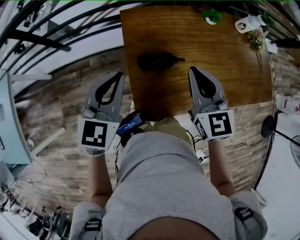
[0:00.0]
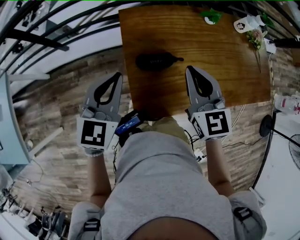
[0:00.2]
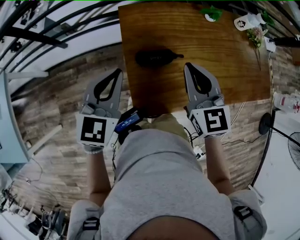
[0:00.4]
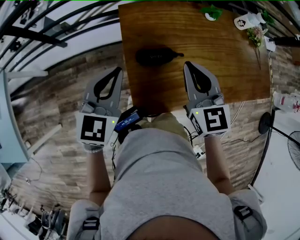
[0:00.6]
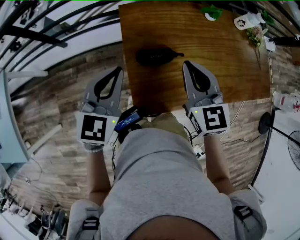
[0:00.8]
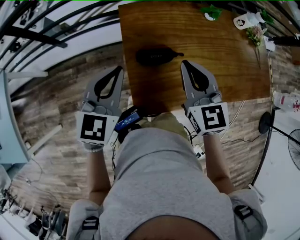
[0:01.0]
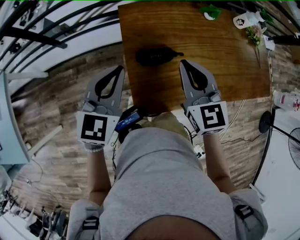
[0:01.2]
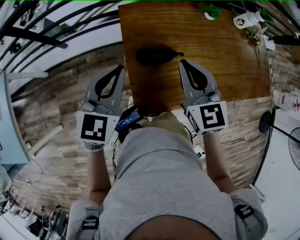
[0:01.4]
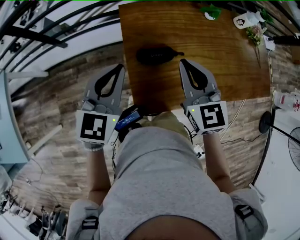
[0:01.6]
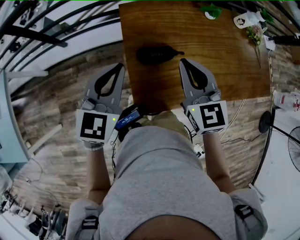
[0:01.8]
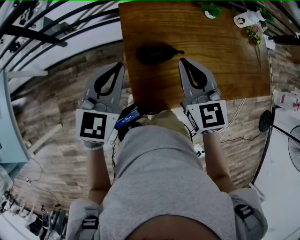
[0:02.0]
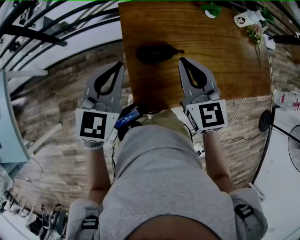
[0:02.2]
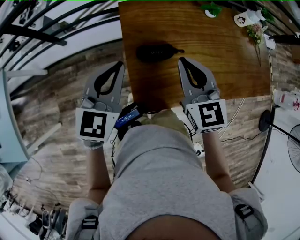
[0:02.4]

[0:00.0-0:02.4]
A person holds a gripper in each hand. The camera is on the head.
0:00.0 to 0:01.2: There are only small adjustments of the grippers.
0:01.2 to 0:02.4: Both grippers stay about where they are.

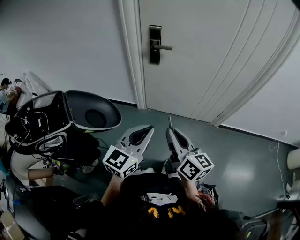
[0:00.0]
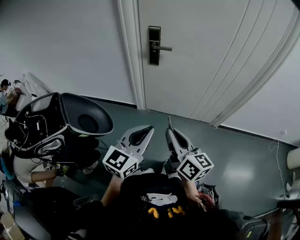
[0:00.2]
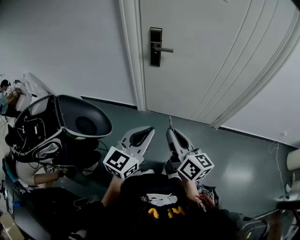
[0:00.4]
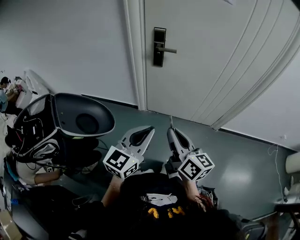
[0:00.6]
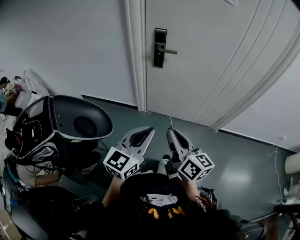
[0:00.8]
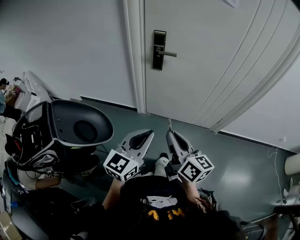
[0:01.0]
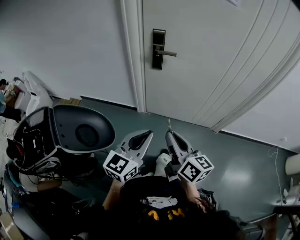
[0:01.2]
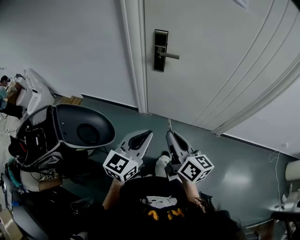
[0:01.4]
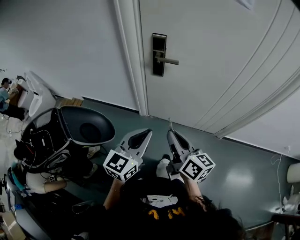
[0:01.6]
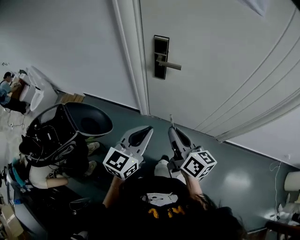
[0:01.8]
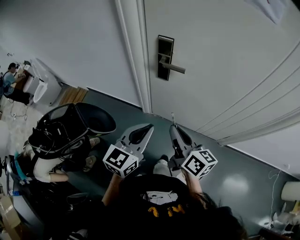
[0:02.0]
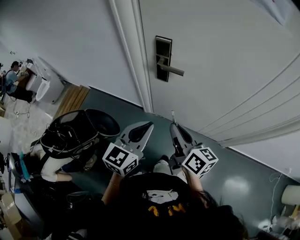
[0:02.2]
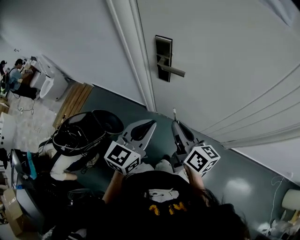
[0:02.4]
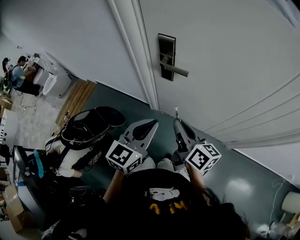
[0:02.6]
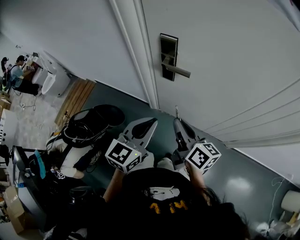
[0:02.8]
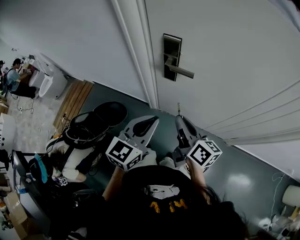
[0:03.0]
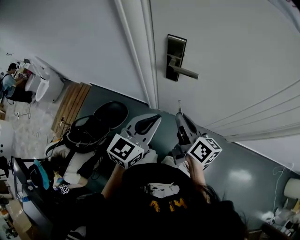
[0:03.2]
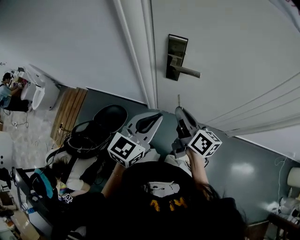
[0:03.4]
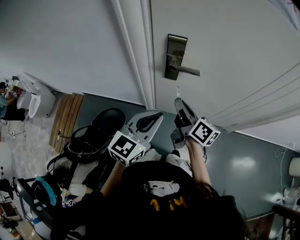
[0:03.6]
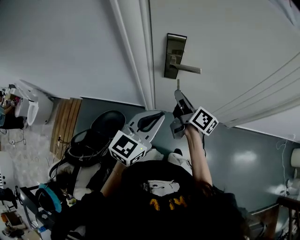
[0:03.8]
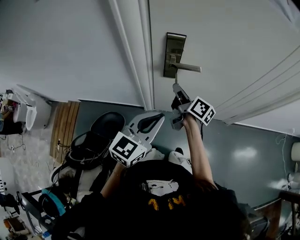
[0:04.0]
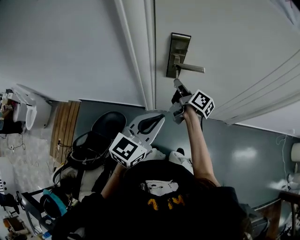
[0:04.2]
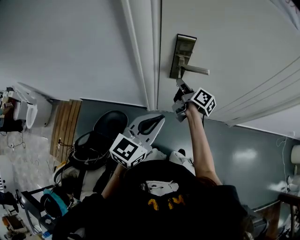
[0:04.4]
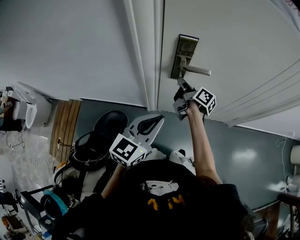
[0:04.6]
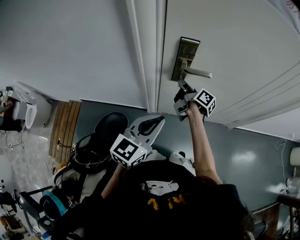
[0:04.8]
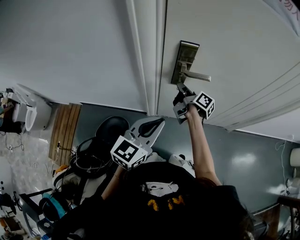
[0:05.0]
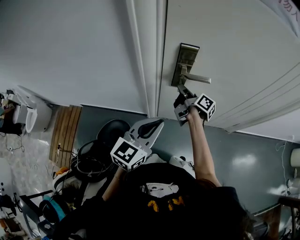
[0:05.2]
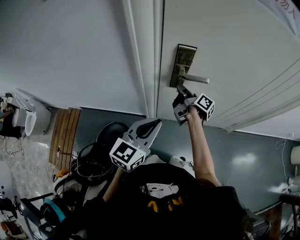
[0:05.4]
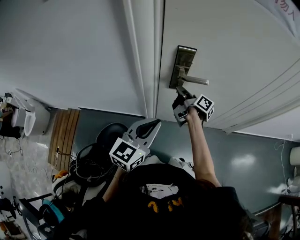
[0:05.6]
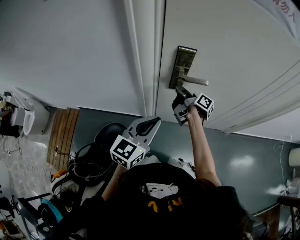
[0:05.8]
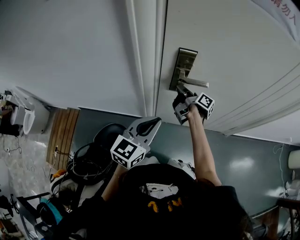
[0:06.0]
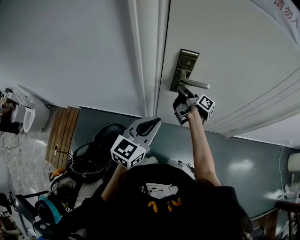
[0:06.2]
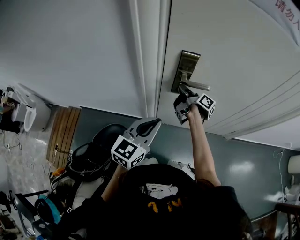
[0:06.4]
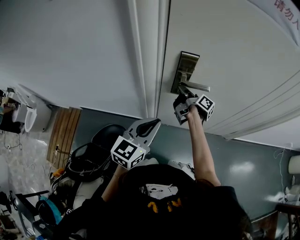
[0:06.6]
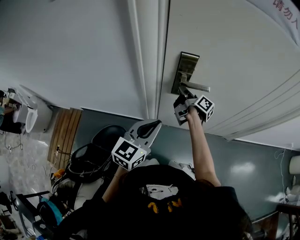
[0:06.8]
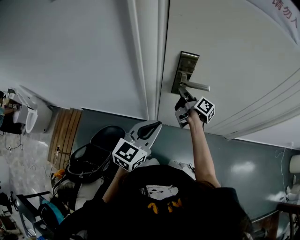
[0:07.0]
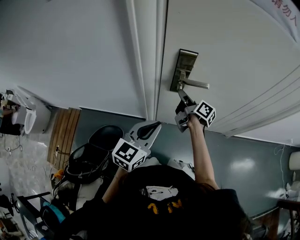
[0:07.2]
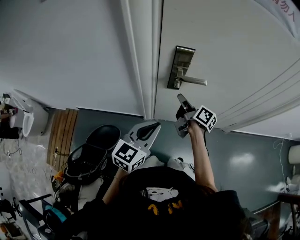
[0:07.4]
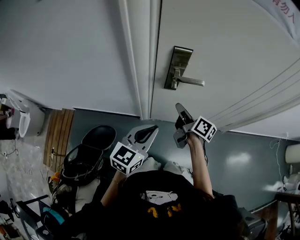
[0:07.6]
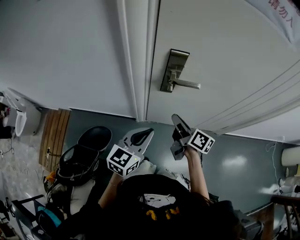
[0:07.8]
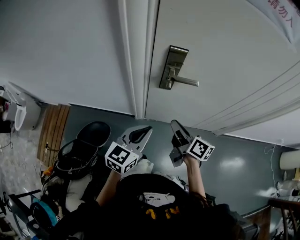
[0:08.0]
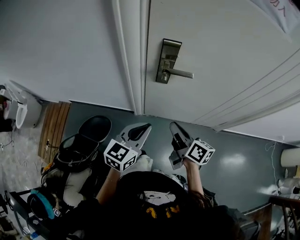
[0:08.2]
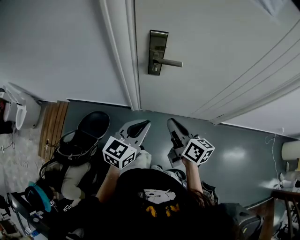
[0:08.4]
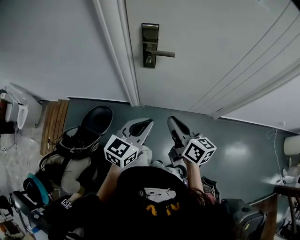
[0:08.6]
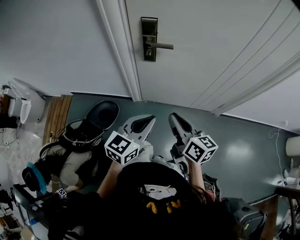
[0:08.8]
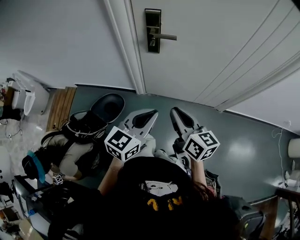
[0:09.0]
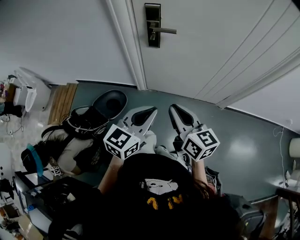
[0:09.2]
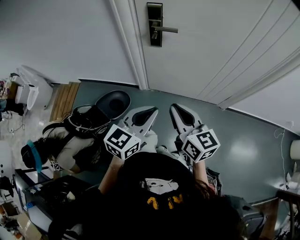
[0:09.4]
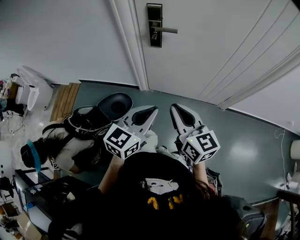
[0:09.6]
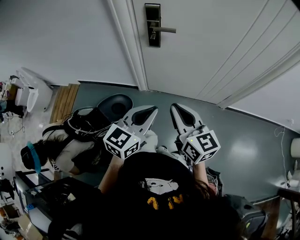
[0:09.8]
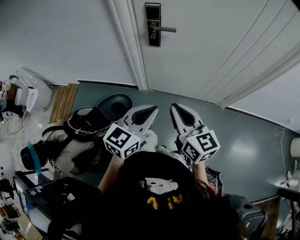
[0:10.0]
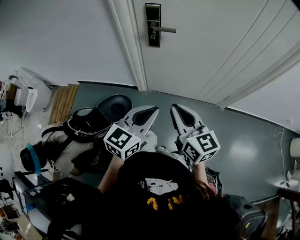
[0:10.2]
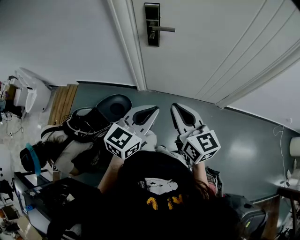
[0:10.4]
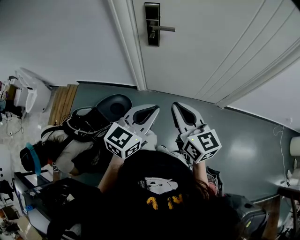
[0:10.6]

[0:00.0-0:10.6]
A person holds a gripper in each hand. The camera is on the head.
0:00.0 to 0:01.6: Both grippers move forward, approximately 15 cm.
0:01.6 to 0:03.0: The grippers both shift forward by about 20 cm.
0:03.0 to 0:04.6: The right gripper goes approximately 20 cm forward, to the left and downward, and rotates roughly 30 degrees, while the left gripper travels to the left by approximately 10 cm.
0:04.6 to 0:06.0: The left gripper ends up some 5 cm from where it was.
0:06.0 to 0:07.6: The right gripper is displaced backward by roughly 10 cm, and rotates approximately 20 degrees.
0:07.6 to 0:09.0: The right gripper is displaced backward by approximately 25 cm, and rotates roughly 30 degrees, while the left gripper shifts some 20 cm backward and to the right.
0:09.0 to 0:10.6: The right gripper changes place by about 5 cm.

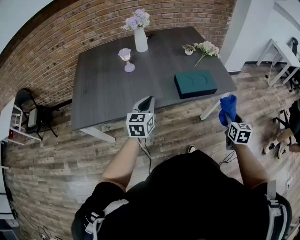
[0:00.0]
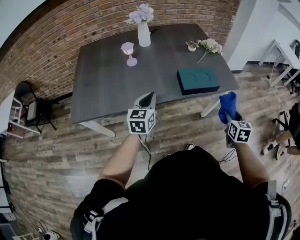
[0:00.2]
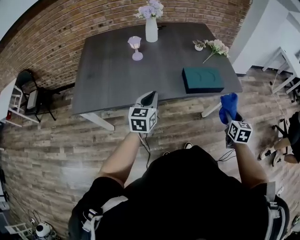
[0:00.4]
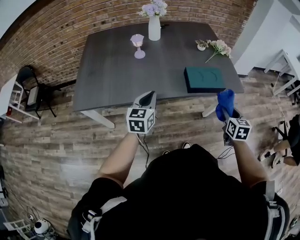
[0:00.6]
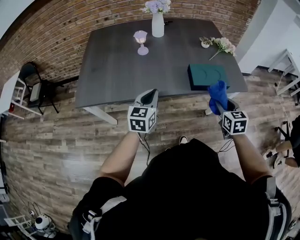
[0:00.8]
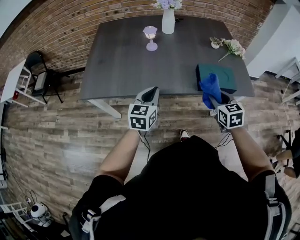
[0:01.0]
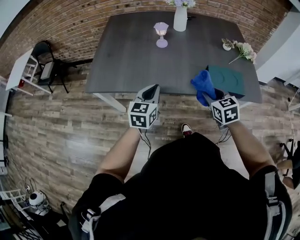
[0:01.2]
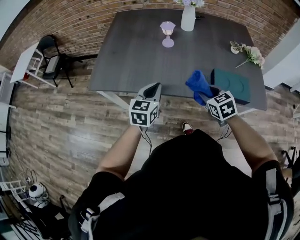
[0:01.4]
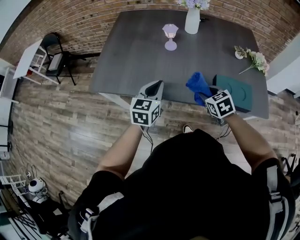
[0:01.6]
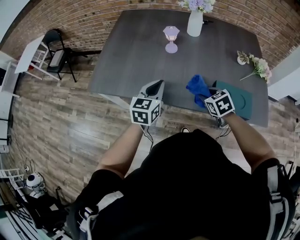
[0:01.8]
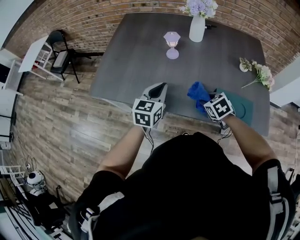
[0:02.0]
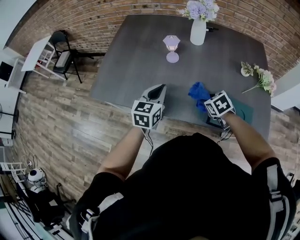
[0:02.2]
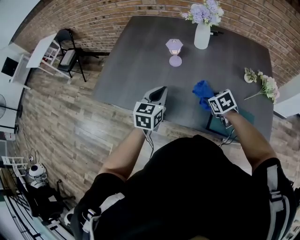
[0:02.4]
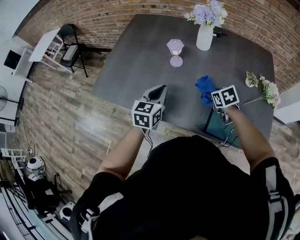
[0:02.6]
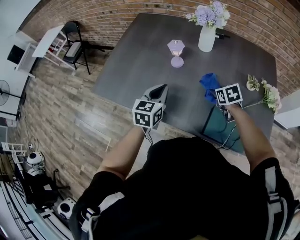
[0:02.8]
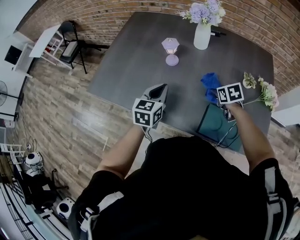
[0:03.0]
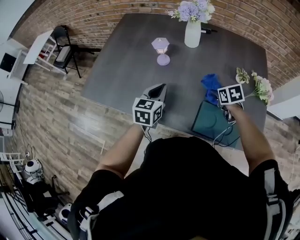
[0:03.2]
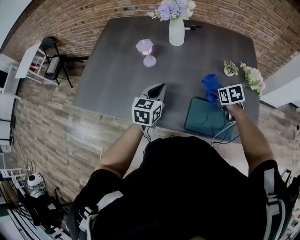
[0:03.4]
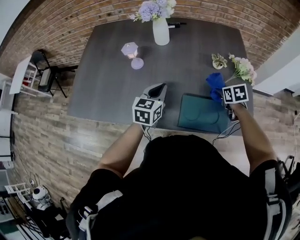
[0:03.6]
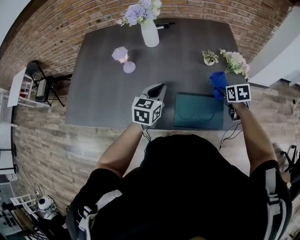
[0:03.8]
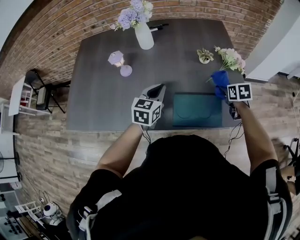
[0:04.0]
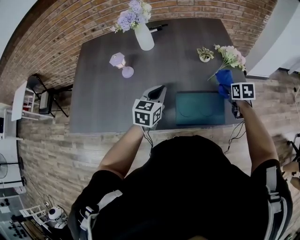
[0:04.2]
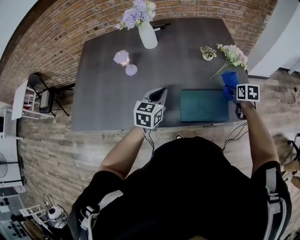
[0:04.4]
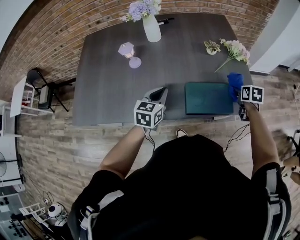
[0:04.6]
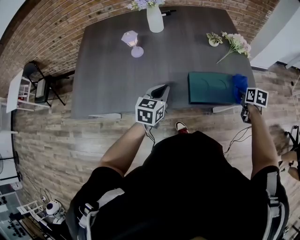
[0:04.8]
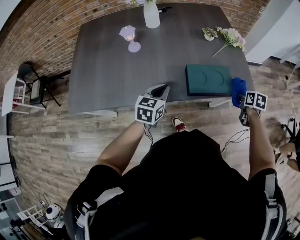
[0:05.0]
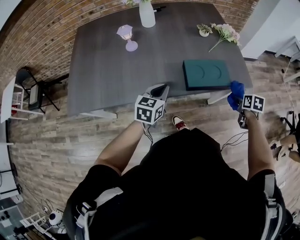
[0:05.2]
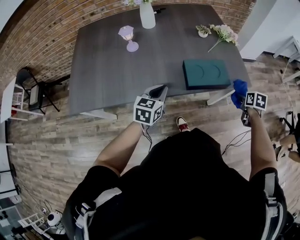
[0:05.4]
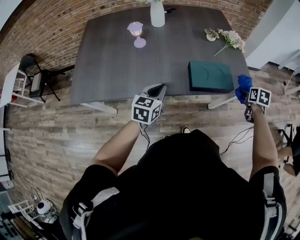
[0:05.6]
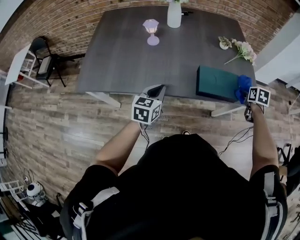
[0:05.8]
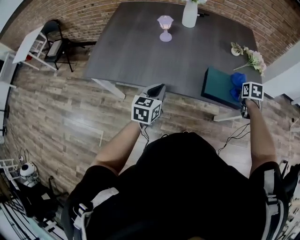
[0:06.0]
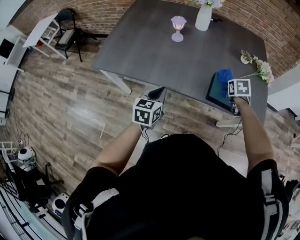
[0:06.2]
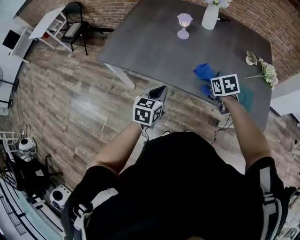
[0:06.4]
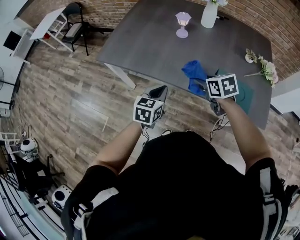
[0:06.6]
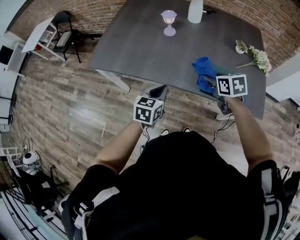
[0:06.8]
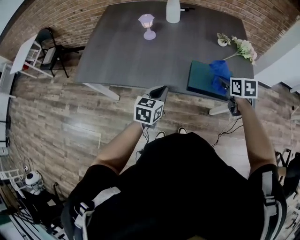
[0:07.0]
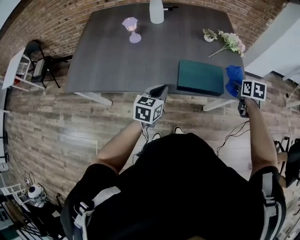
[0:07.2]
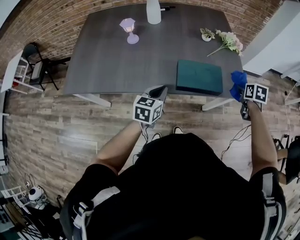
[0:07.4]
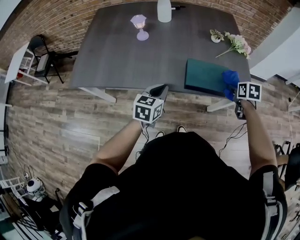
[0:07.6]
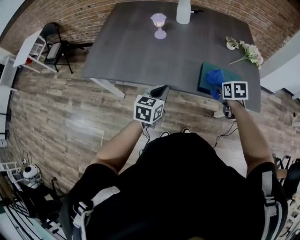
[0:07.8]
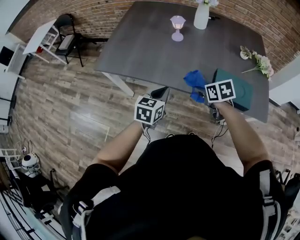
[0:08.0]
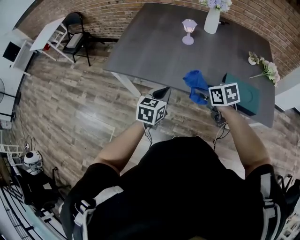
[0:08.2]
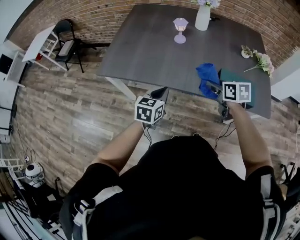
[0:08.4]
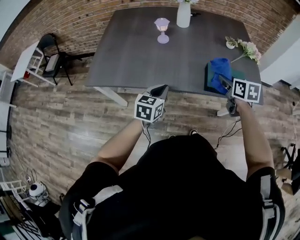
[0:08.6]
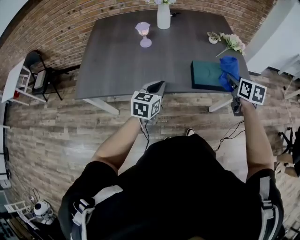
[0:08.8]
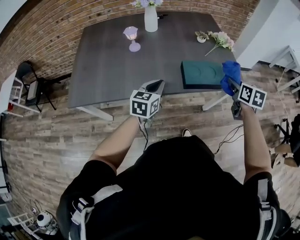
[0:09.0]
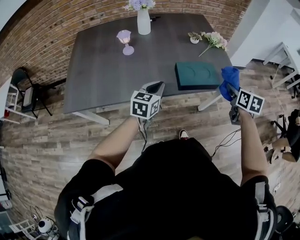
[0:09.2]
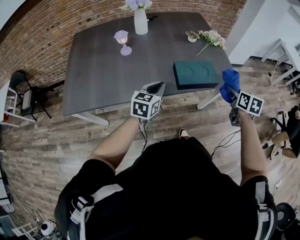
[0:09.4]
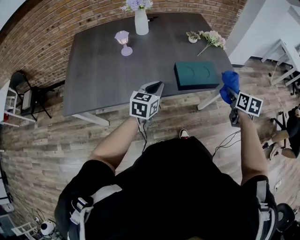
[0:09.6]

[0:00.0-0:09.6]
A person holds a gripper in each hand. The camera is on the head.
0:00.0 to 0:01.6: The left gripper moves about 10 cm. Meanwhile the right gripper shifts by roughly 35 cm, and turns by about 60 degrees.
0:01.6 to 0:03.2: The right gripper shifts roughly 25 cm to the right and forward, while the left gripper travels to the right and forward by about 15 cm.
0:03.2 to 0:04.8: The left gripper changes place by roughly 10 cm, and rotates some 20 degrees. Meanwhile the right gripper ends up some 30 cm from where it was, and turns by roughly 50 degrees.
0:04.8 to 0:06.4: The left gripper moves some 20 cm, and changes its angle by some 20 degrees. The right gripper ends up some 35 cm from where it was, and rotates around the line of its fingers by some 40 degrees, counterclockwise from behind.
0:08.0 to 0:09.6: The left gripper shifts by approximately 15 cm, and changes its angle by some 30 degrees. Meanwhile the right gripper changes place by roughly 30 cm, and changes its angle by approximately 60 degrees.

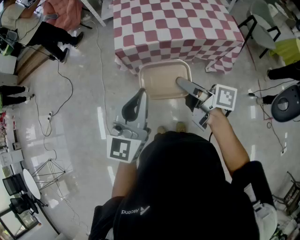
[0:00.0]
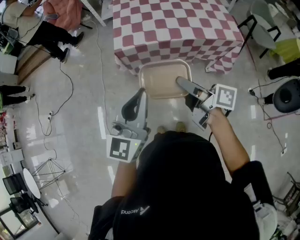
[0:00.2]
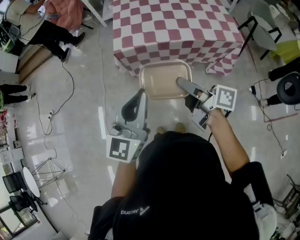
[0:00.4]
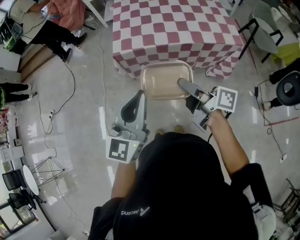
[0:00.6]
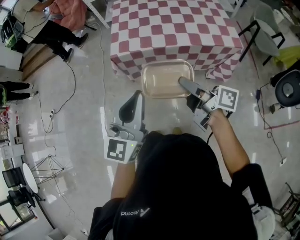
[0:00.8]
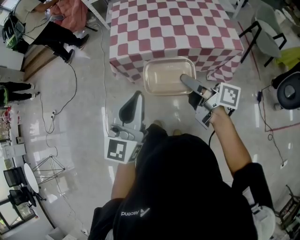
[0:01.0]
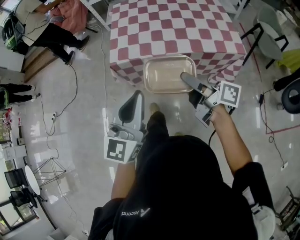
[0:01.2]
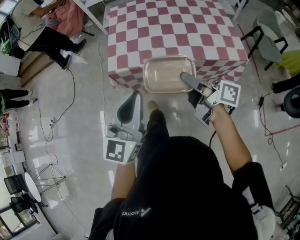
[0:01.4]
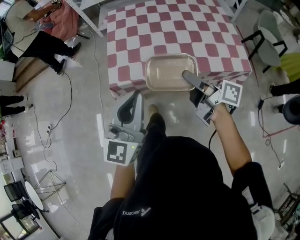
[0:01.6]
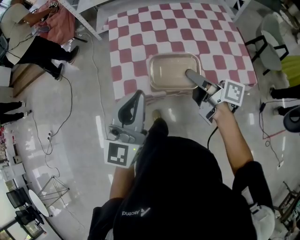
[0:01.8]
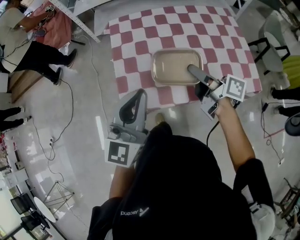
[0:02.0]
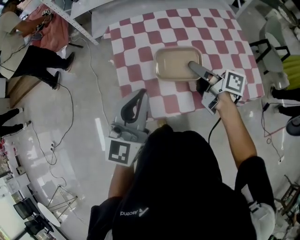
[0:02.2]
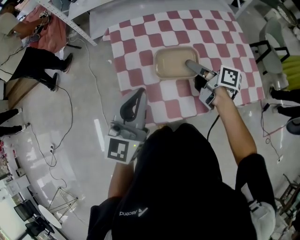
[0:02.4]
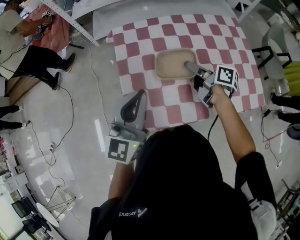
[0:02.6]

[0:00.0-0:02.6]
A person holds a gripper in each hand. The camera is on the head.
0:00.0 to 0:01.2: Both grippers travel together to the right and forward, about 10 cm.
0:01.2 to 0:02.6: The pair of grippers is taken forward, approximately 50 cm. The right gripper changes its angle by roughly 20 degrees.
